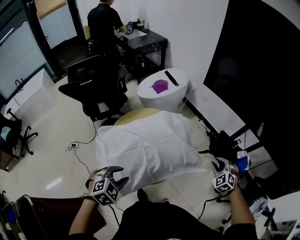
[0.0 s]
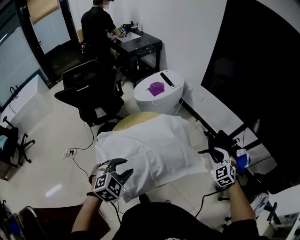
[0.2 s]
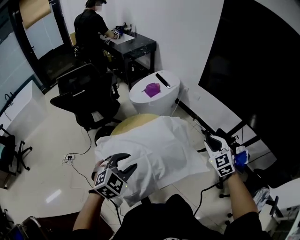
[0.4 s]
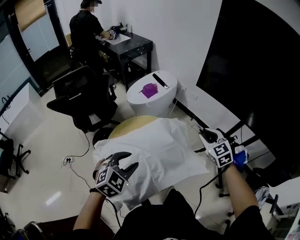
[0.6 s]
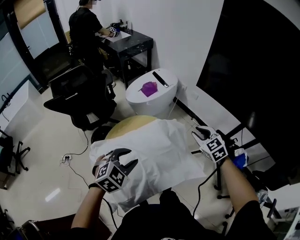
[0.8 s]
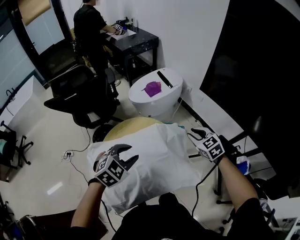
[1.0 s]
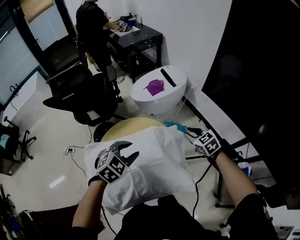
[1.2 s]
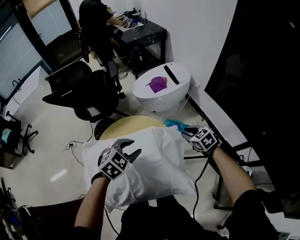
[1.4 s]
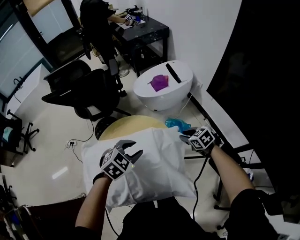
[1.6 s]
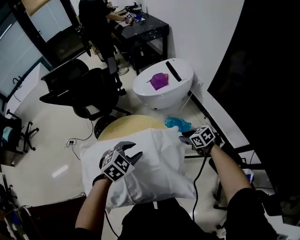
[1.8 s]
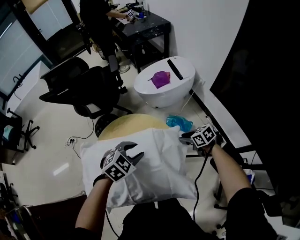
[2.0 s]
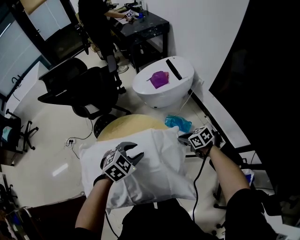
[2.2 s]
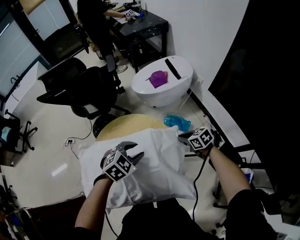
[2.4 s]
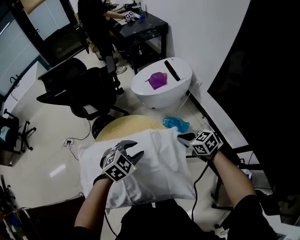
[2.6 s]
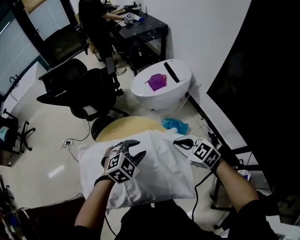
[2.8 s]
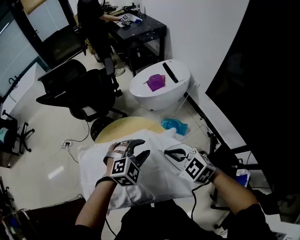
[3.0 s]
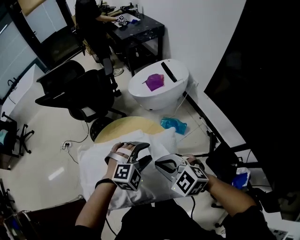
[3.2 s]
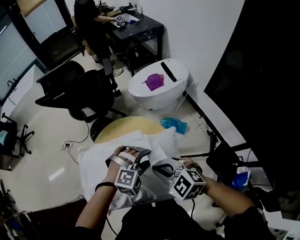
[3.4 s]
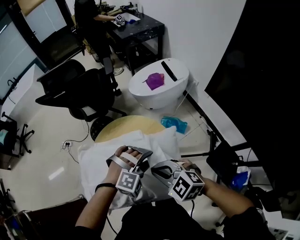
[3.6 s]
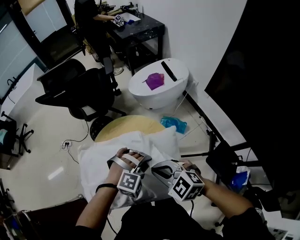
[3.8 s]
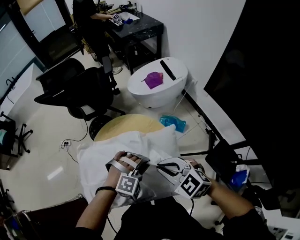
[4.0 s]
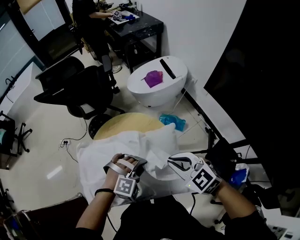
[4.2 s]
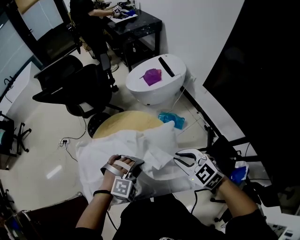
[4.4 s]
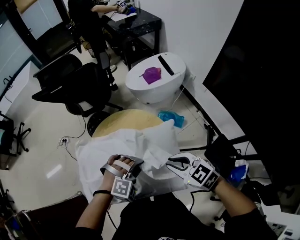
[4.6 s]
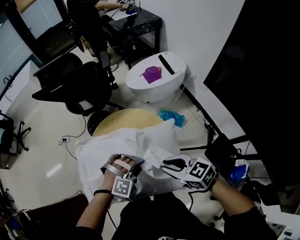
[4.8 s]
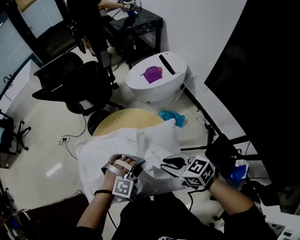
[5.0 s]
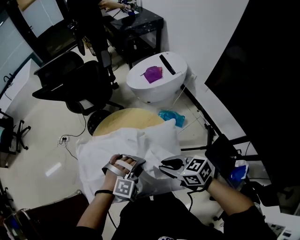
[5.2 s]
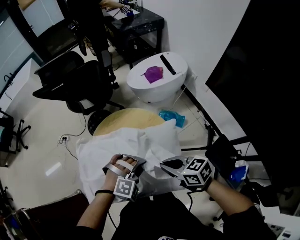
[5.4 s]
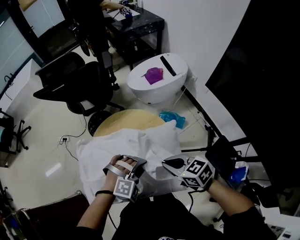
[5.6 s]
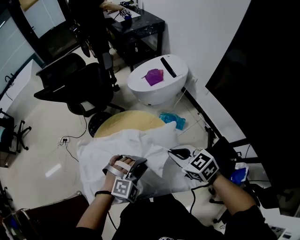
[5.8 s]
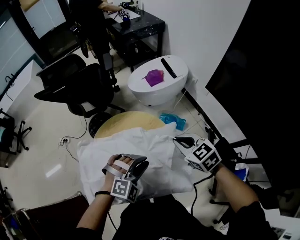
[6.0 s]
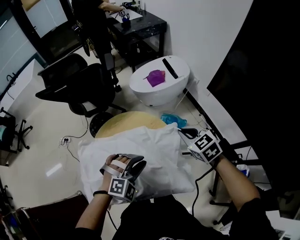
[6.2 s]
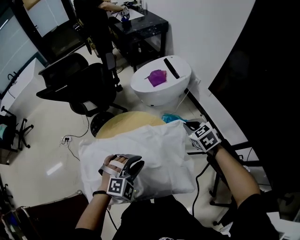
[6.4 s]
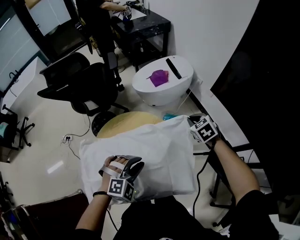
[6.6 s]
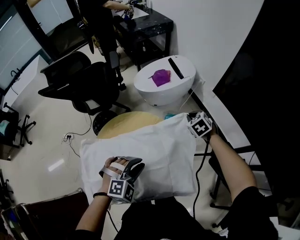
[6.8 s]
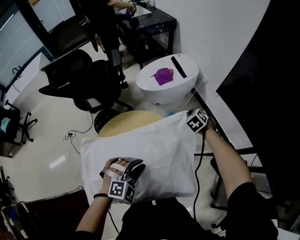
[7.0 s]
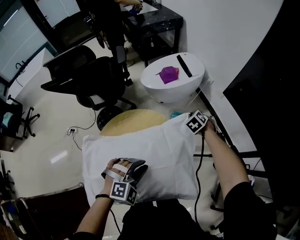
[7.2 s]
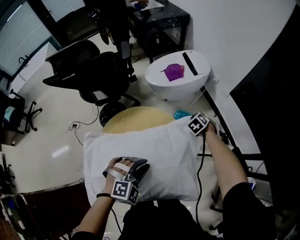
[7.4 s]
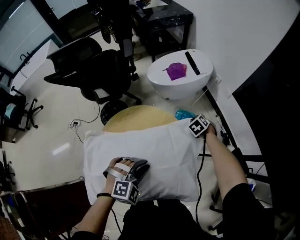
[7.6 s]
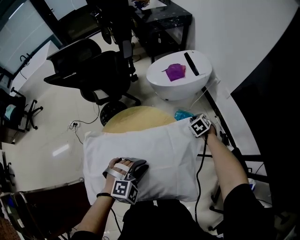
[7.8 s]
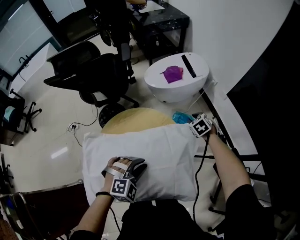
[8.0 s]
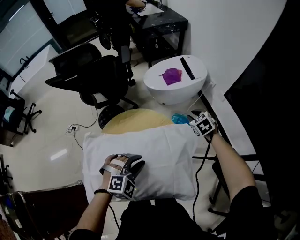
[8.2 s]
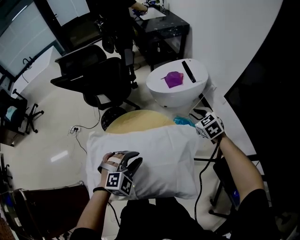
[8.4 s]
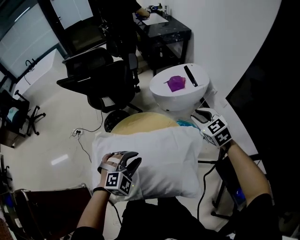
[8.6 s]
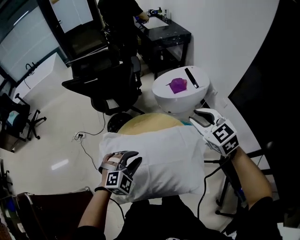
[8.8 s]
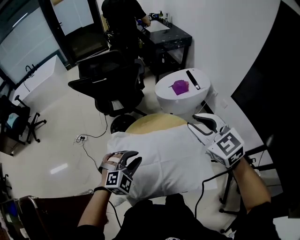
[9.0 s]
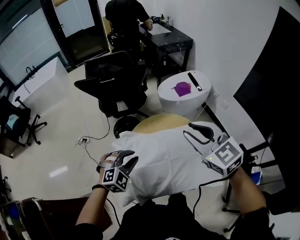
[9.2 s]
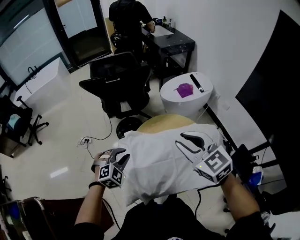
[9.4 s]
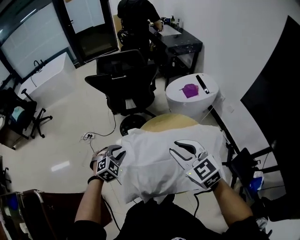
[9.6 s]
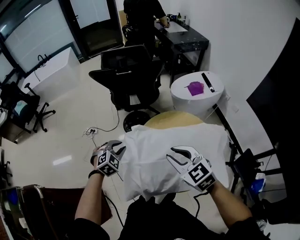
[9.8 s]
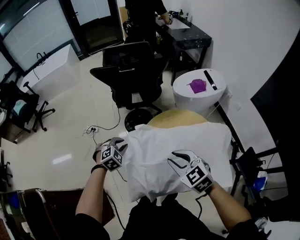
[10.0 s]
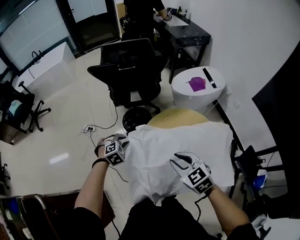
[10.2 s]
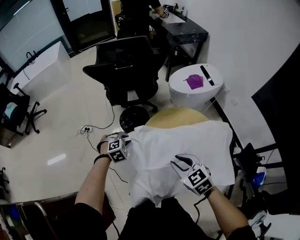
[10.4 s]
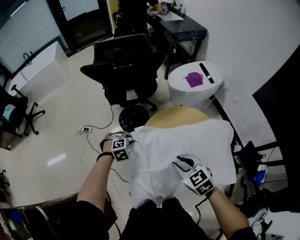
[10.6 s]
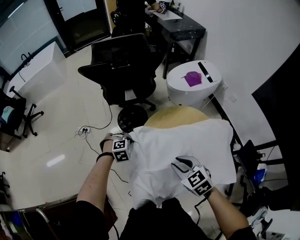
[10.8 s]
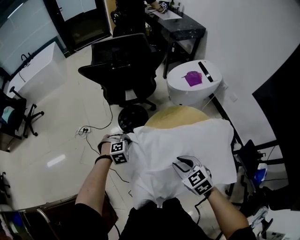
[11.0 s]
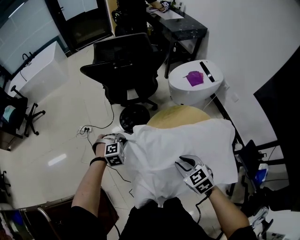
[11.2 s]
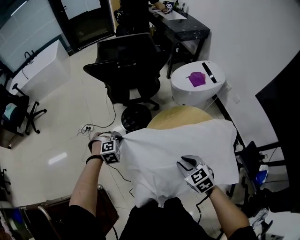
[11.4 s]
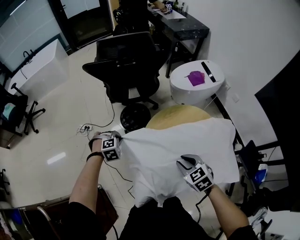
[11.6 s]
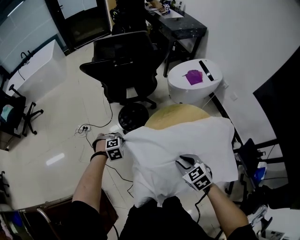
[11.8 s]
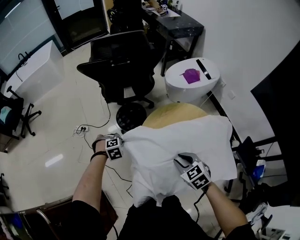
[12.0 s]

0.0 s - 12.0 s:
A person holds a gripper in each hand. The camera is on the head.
0.0 s - 1.6 s: The right gripper moves about 35 cm, and changes its angle by approximately 50 degrees. The left gripper travels upward and back again, some 5 cm each way.
1.6 s - 3.0 s: The left gripper swivels approximately 20 degrees. The right gripper goes roughly 20 cm upward, to the left and backward, changes its angle by about 30 degrees, and closes.
3.0 s - 4.4 s: The right gripper is displaced backward by roughly 5 cm, and reaches about 5 cm to the left, then returns. The left gripper heads backward, covering about 10 cm, rotates some 20 degrees, and closes up.
4.4 s - 6.0 s: The right gripper shifts some 10 cm forward.
6.0 s - 7.6 s: The right gripper moves downward and forward, approximately 30 cm, and changes its angle by approximately 30 degrees. The left gripper shifts about 5 cm downward.
7.6 s - 9.0 s: The right gripper travels upward, to the left and backward by some 50 cm, tilts its fingers some 40 degrees upward, and opens up. Meanwhile the left gripper travels to the left and upward by some 20 cm.
9.0 s - 10.4 s: The right gripper travels to the left, downward and backward by approximately 30 cm, and rotates approximately 20 degrees. The left gripper shifts approximately 30 cm to the left, downward and forward, and rotates approximately 20 degrees.
10.4 s - 12.0 s: Both grippers move downward, approximately 5 cm.

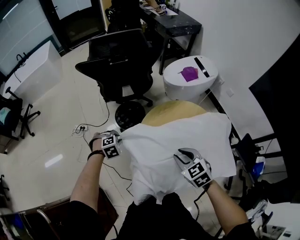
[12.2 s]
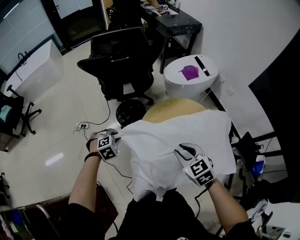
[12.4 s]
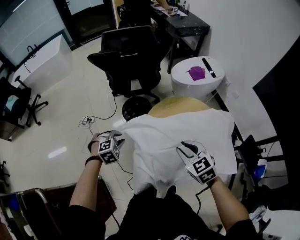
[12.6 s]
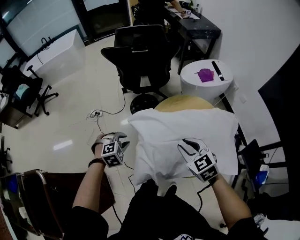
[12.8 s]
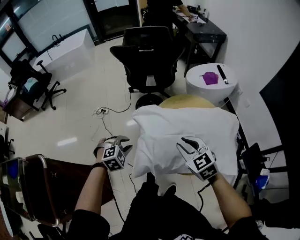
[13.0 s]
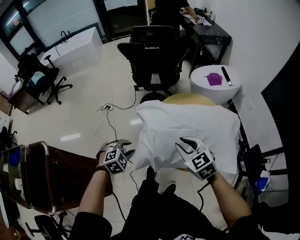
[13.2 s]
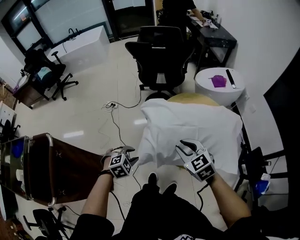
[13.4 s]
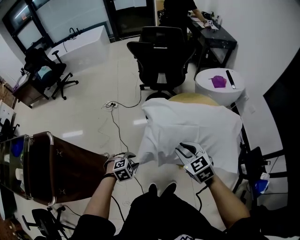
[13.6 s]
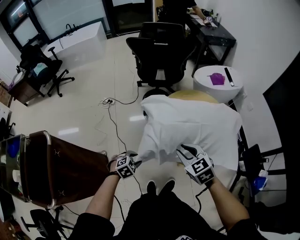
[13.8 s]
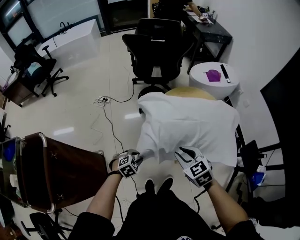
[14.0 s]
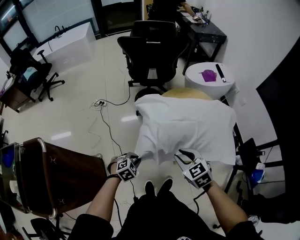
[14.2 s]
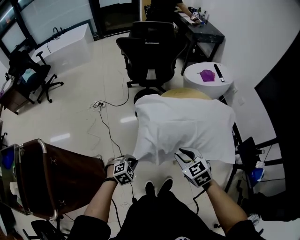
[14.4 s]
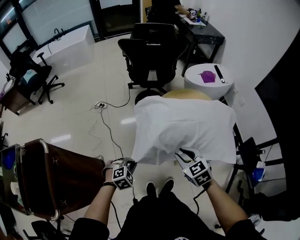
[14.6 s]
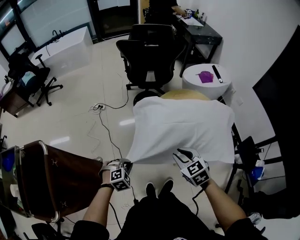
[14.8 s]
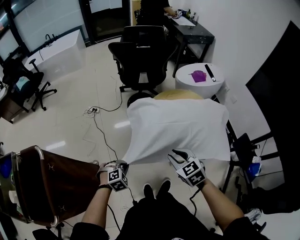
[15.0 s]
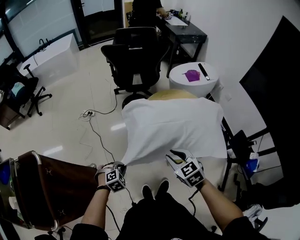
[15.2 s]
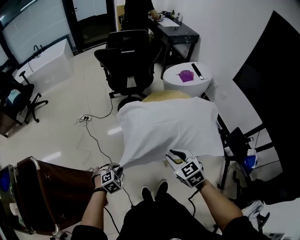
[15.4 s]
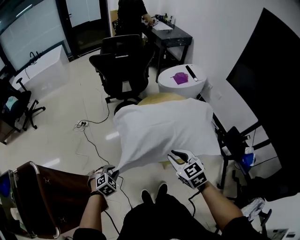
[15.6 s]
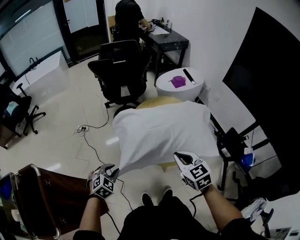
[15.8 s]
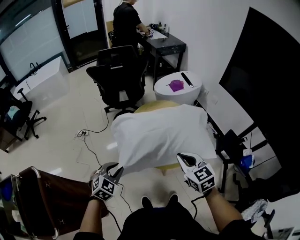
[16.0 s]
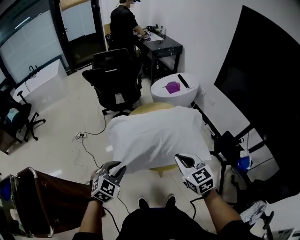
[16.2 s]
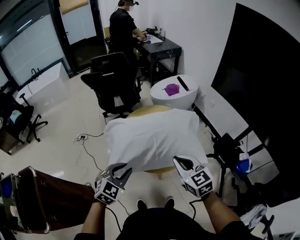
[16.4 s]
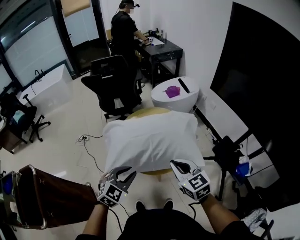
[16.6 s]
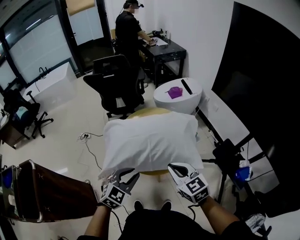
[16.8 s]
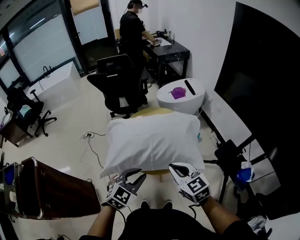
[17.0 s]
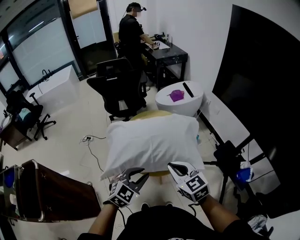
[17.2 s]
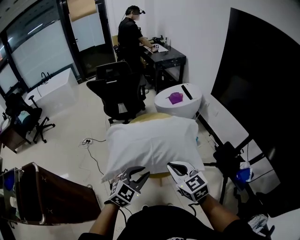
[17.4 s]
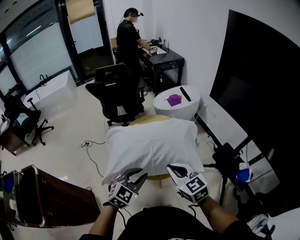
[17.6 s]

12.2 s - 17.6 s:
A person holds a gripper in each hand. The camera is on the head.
12.2 s - 13.6 s: The left gripper moves backward, some 35 cm, and swivels some 20 degrees, while the right gripper is displaced backward and upward by approximately 15 cm, and turns by some 20 degrees.
13.6 s - 15.0 s: The right gripper changes place by some 5 cm. Meanwhile the left gripper closes up.
15.0 s - 16.2 s: The right gripper shifts about 20 cm to the right and upward, swivels approximately 20 degrees, and closes its fingers; the left gripper heads upward and to the right, covering approximately 20 cm, and rotates roughly 30 degrees.
16.2 s - 17.6 s: The left gripper heads to the right, covering approximately 15 cm, while the right gripper changes place by some 5 cm.

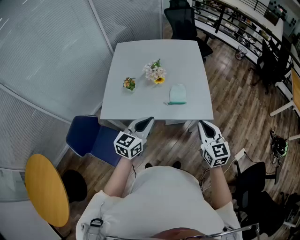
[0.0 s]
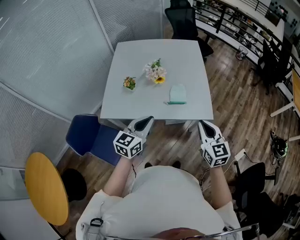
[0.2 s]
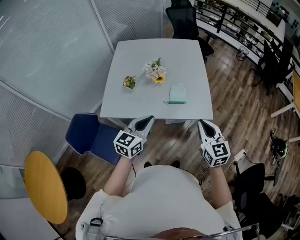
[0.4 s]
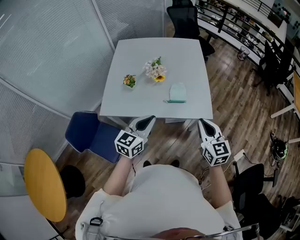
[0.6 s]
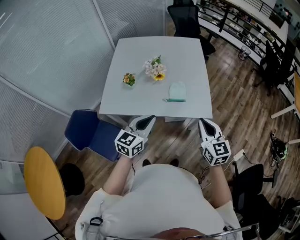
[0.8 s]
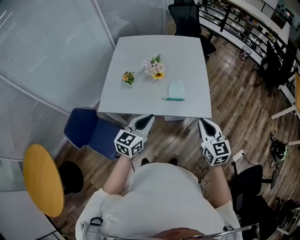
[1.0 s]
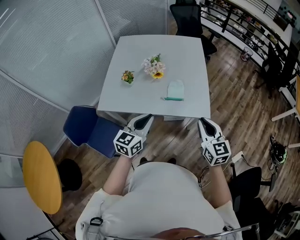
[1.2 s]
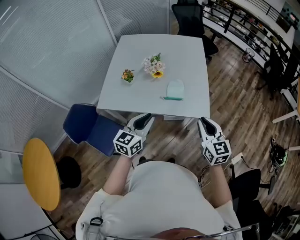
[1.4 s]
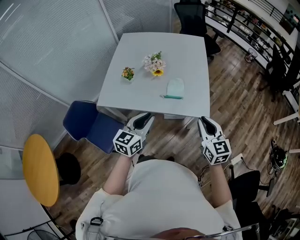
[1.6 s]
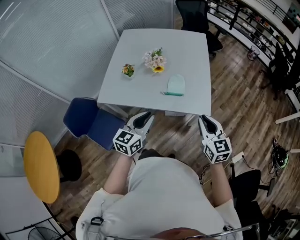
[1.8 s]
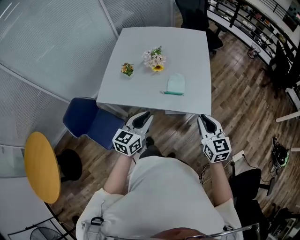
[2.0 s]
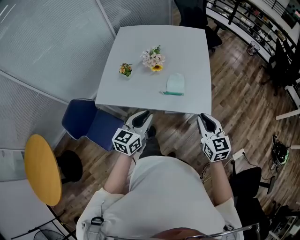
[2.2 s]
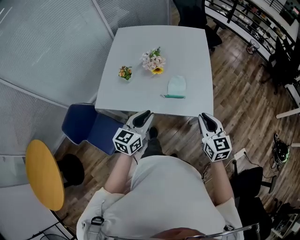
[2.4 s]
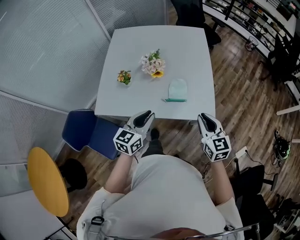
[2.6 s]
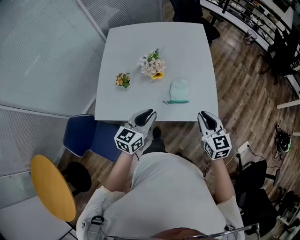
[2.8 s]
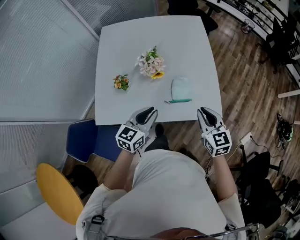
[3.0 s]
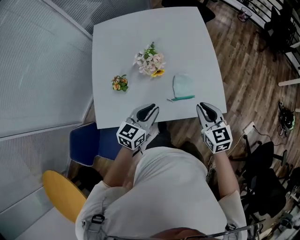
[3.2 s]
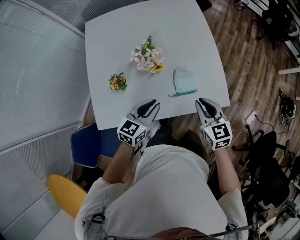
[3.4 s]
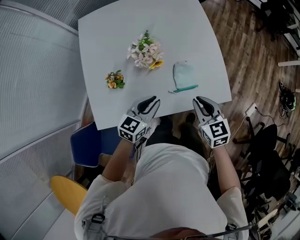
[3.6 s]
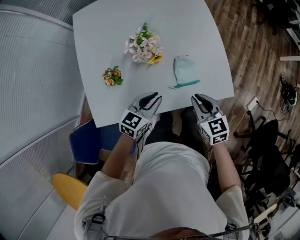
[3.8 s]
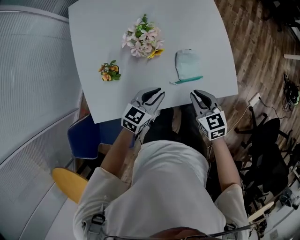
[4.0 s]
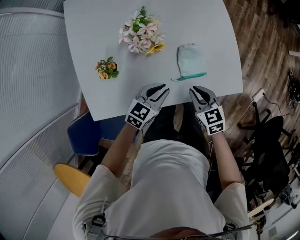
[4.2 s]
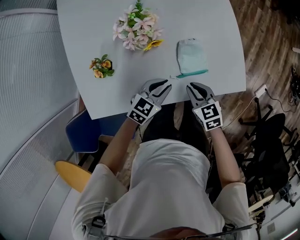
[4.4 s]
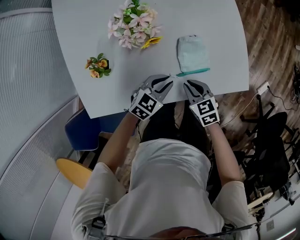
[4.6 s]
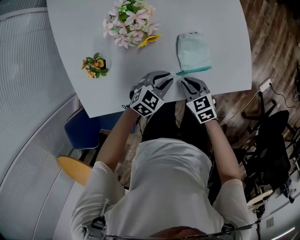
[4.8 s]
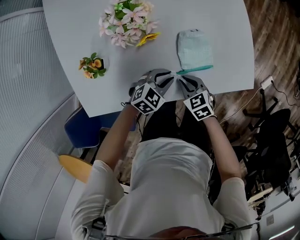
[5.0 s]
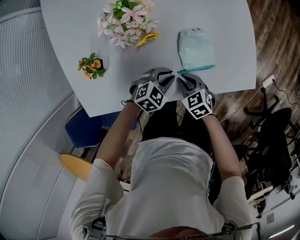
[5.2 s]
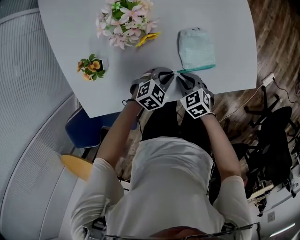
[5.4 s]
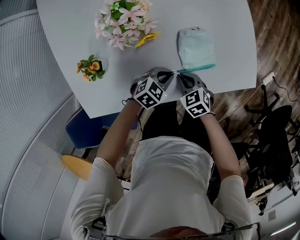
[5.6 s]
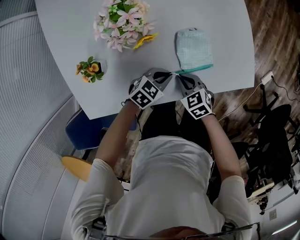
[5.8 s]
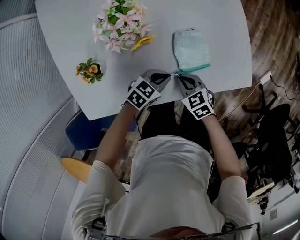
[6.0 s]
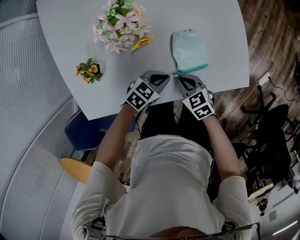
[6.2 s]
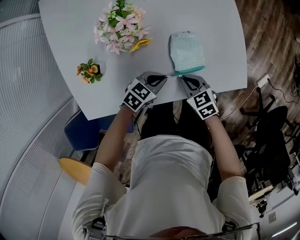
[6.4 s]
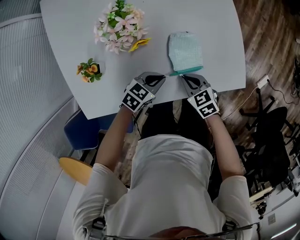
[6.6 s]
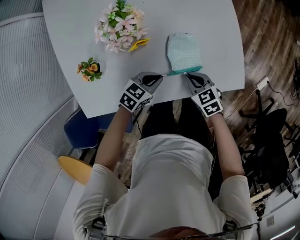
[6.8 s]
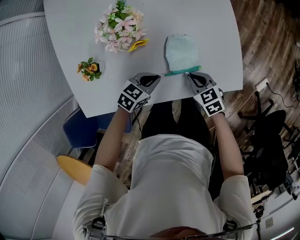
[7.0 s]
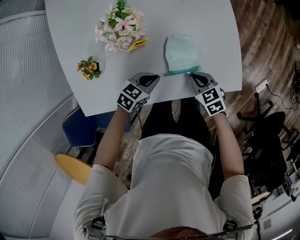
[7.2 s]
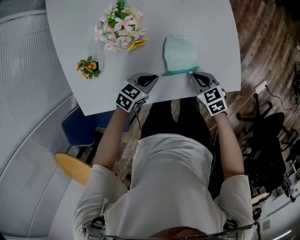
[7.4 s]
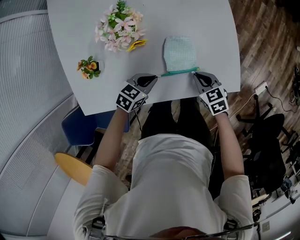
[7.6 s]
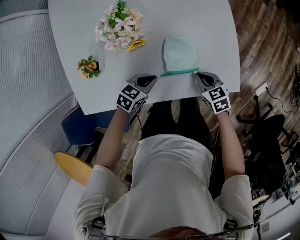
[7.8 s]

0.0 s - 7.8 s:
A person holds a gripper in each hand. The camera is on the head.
0.0 s - 1.6 s: Both grippers move to the right, approximately 10 cm.
1.6 s - 3.2 s: The left gripper shifts about 25 cm forward and downward, and swivels some 20 degrees. The right gripper travels forward, to the left and downward by roughly 25 cm.
3.2 s - 4.6 s: Both grippers travel together downward, roughly 30 cm. The left gripper turns by roughly 30 degrees. Meanwhile the right gripper turns by some 30 degrees.
4.6 s - 6.2 s: The left gripper moves downward, about 5 cm.
6.2 s - 7.8 s: The right gripper ends up about 15 cm from where it was.
